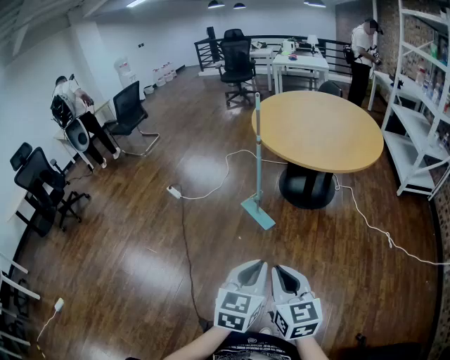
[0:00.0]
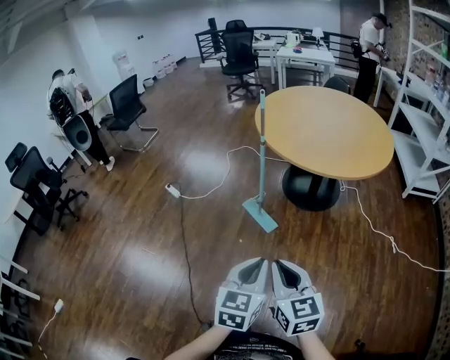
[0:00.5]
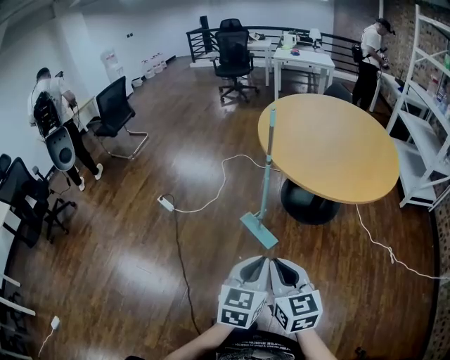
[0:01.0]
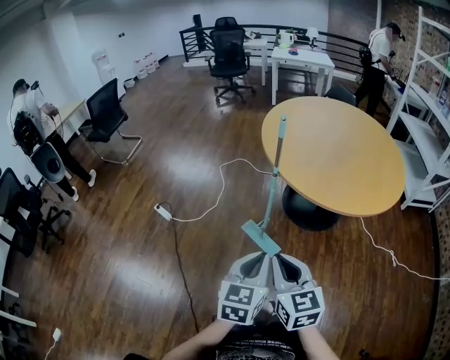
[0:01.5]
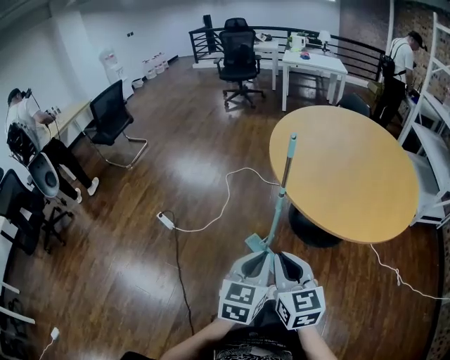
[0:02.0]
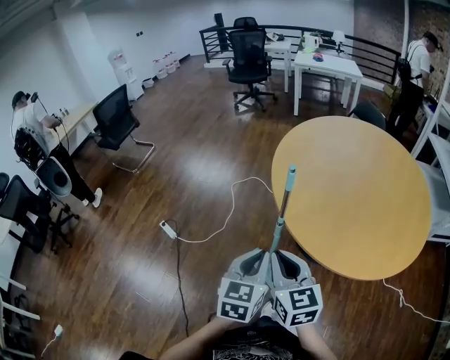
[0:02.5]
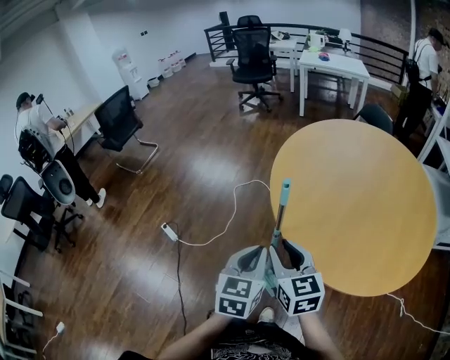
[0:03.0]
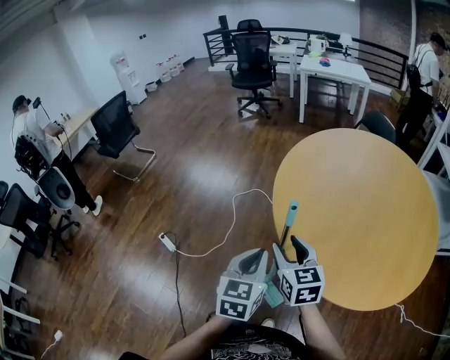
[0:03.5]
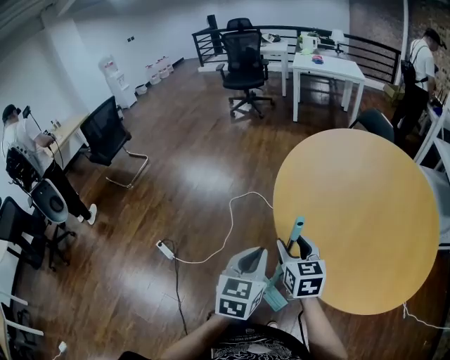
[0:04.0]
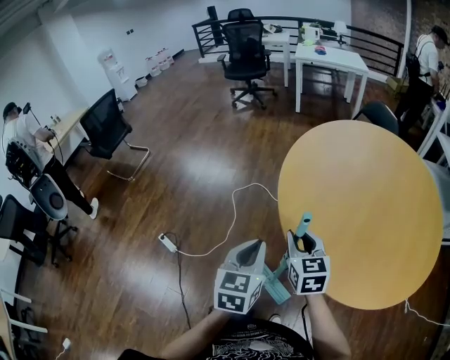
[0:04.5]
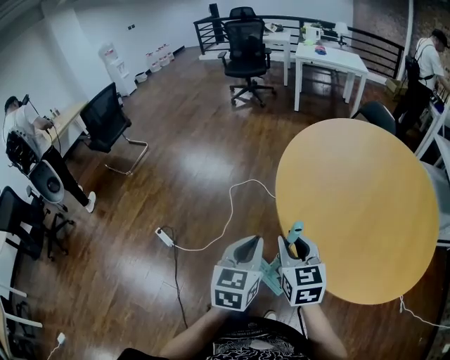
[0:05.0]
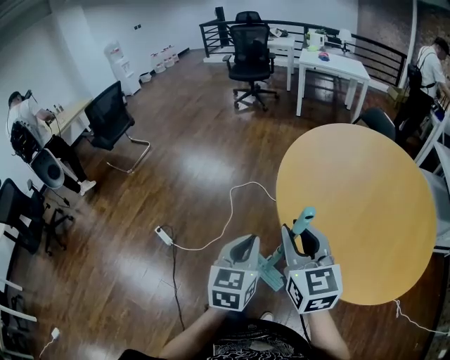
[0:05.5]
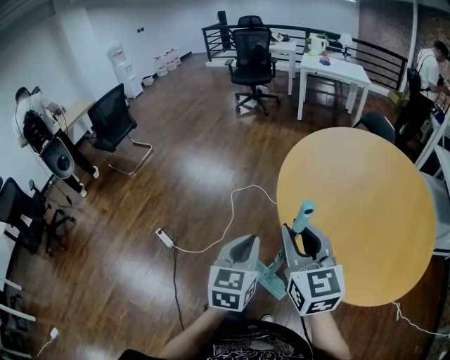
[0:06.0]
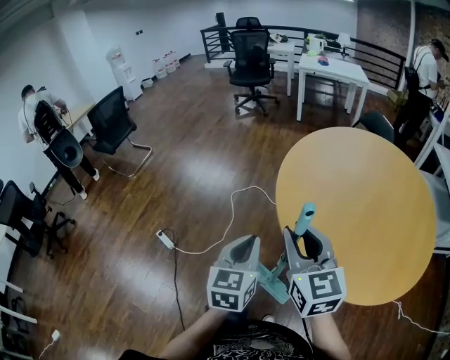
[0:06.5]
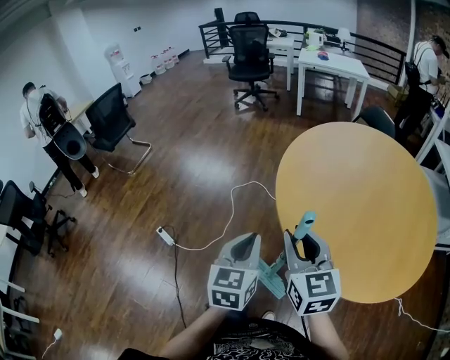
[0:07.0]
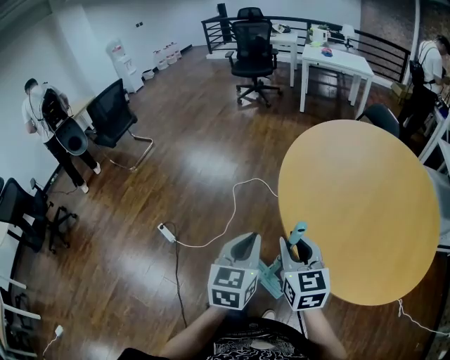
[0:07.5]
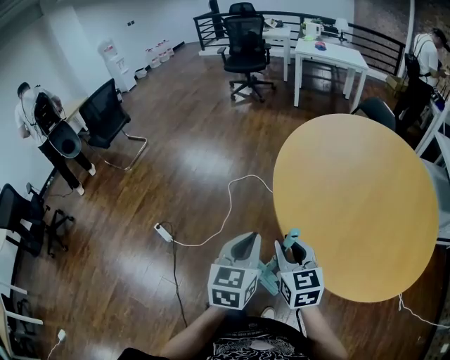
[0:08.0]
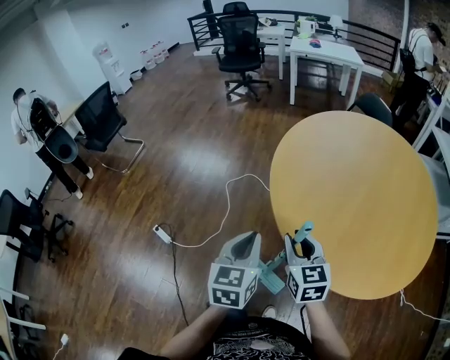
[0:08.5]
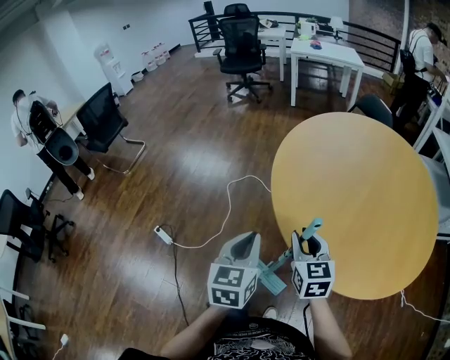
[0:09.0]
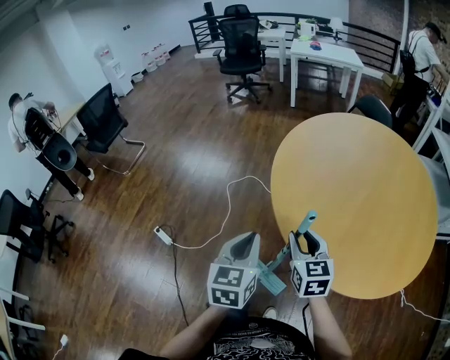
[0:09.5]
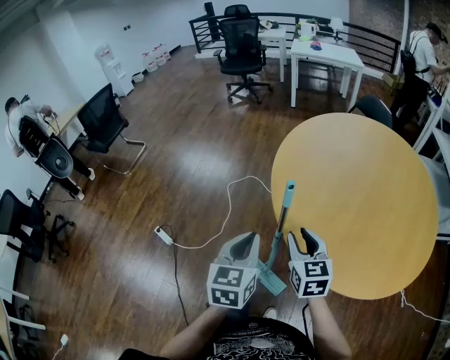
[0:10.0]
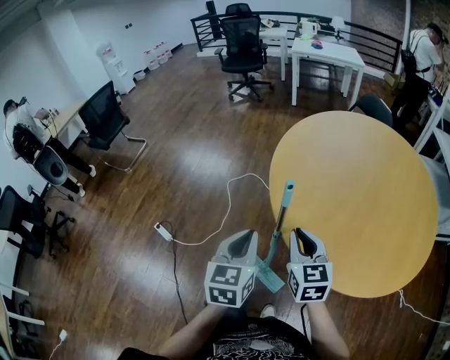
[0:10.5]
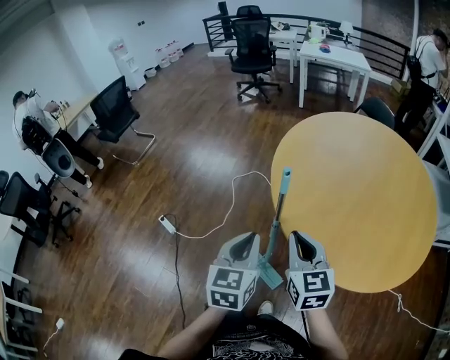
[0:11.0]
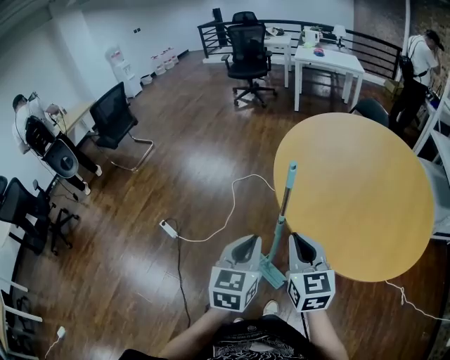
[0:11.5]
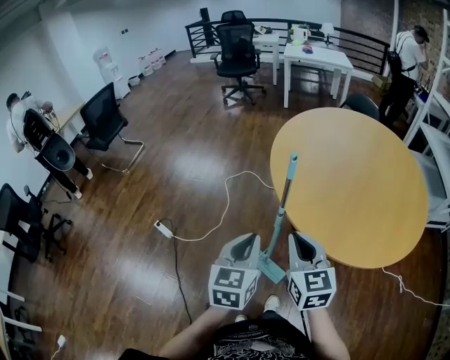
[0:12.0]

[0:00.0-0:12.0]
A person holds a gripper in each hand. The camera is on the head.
0:00.0 to 0:02.0: The pair of grippers is taken forward, some 40 cm.
0:02.0 to 0:04.0: The grippers both shift forward by about 30 cm. The right gripper opens its fingers.
0:04.0 to 0:06.0: The right gripper is displaced upward and backward by approximately 20 cm, and closes its fingers, while the left gripper ends up some 5 cm from where it was.
0:06.0 to 0:08.0: The right gripper shifts some 15 cm downward.
0:08.0 to 0:10.0: The right gripper ends up about 5 cm from where it was.
0:10.0 to 0:12.0: The right gripper shifts roughly 15 cm backward and upward, and closes its fingers; the left gripper shifts about 10 cm backward.

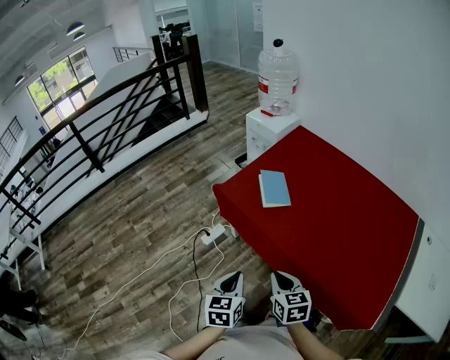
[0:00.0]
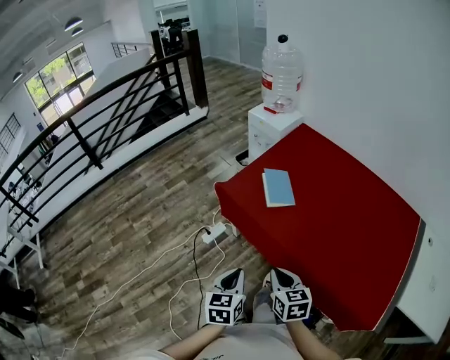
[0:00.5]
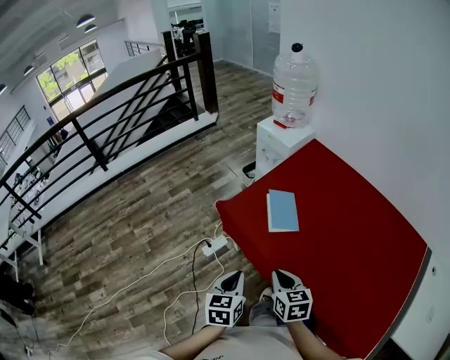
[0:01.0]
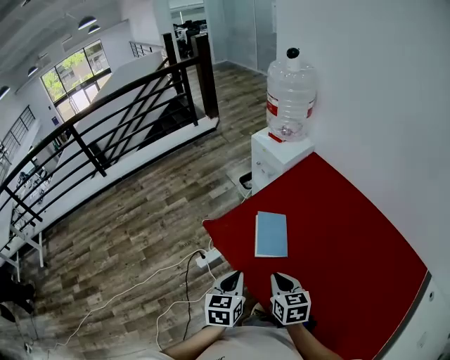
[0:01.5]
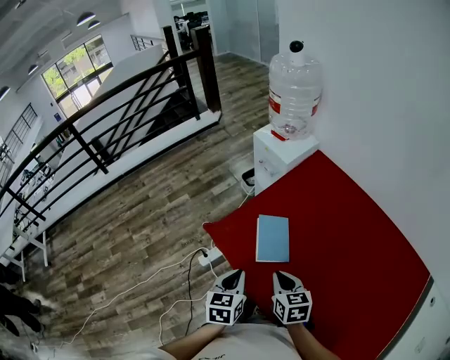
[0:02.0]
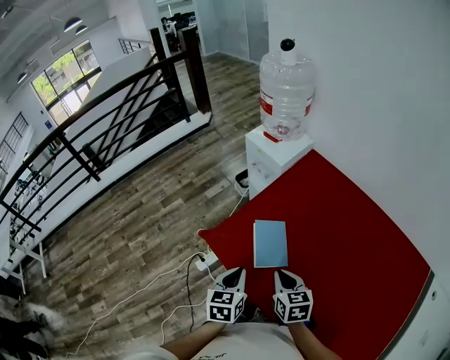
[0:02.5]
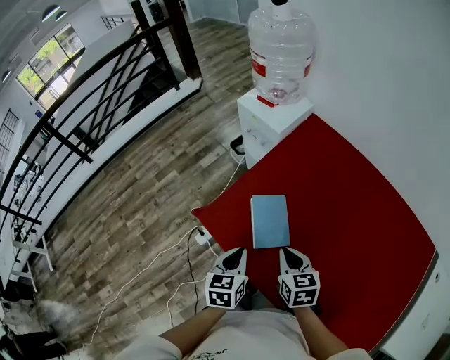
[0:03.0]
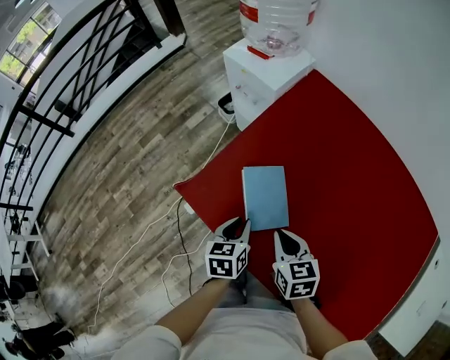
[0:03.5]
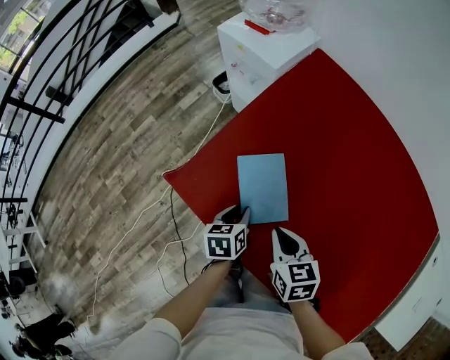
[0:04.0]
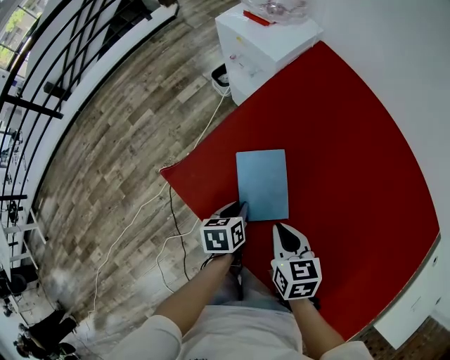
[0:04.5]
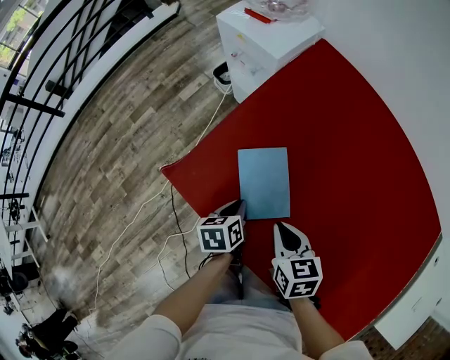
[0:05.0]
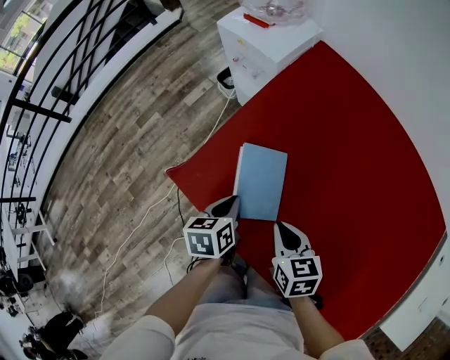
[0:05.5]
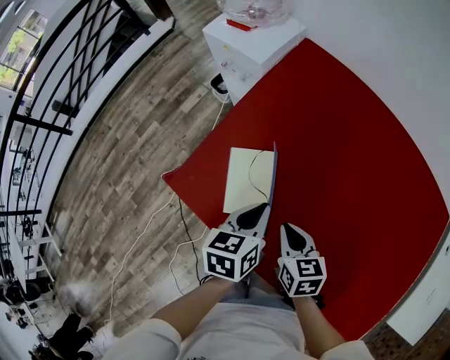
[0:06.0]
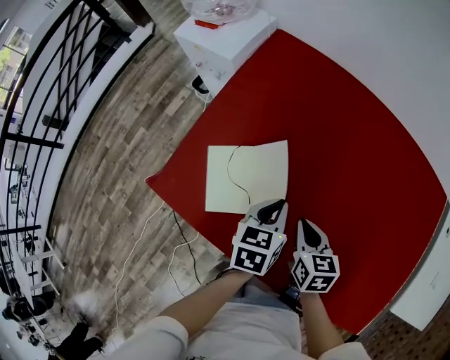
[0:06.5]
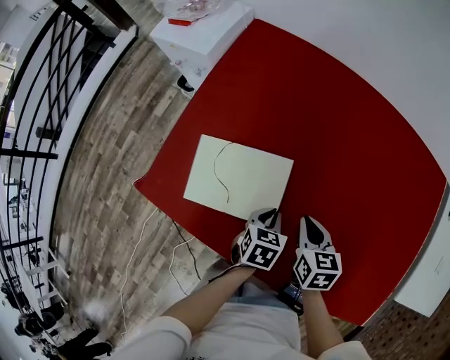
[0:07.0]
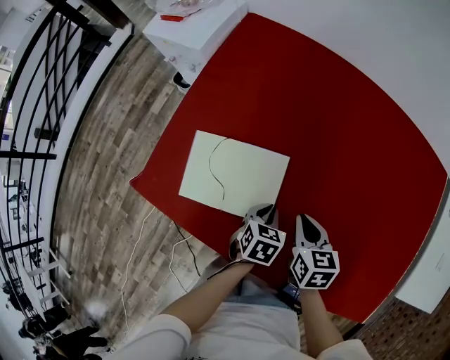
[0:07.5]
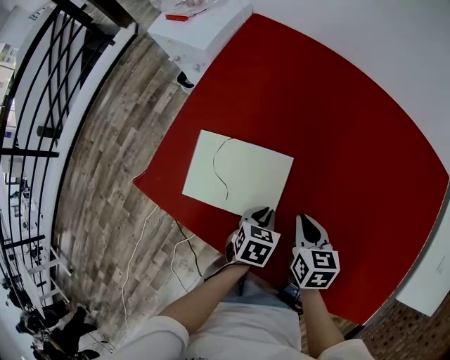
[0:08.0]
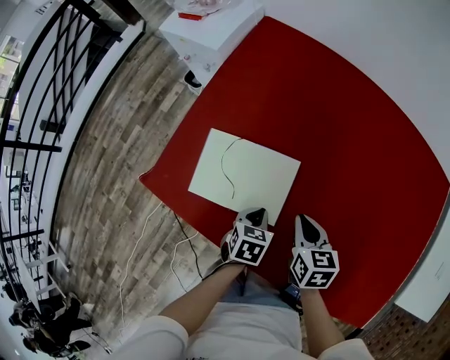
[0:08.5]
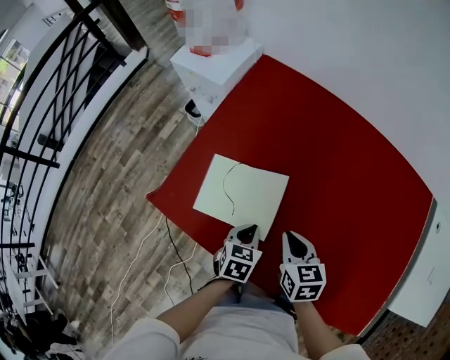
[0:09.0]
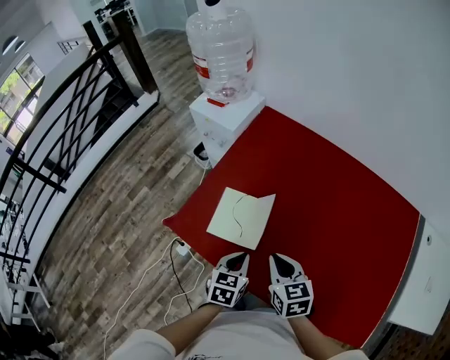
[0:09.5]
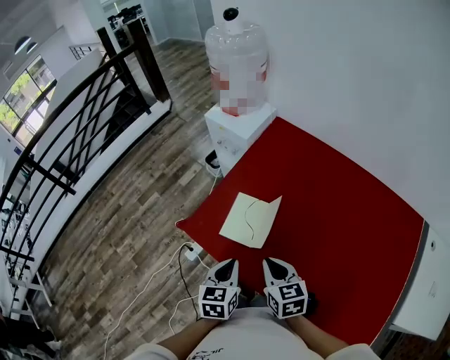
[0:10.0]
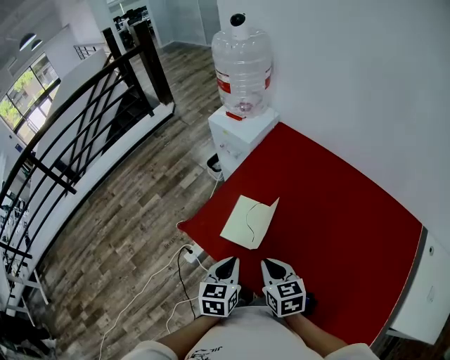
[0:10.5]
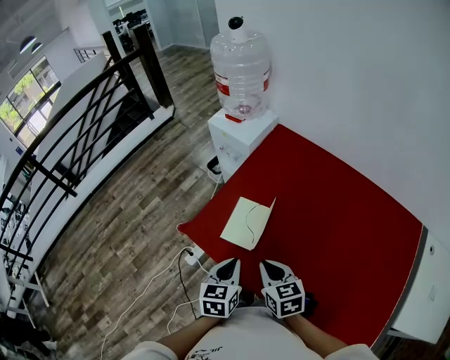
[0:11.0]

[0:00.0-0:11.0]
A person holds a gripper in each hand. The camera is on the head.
0:00.0 to 0:02.0: Both grippers move forward, about 30 cm.
0:02.0 to 0:03.5: The left gripper goes roughly 20 cm downward and forward. Meanwhile the right gripper travels downward and forward by roughly 10 cm.
0:03.5 to 0:05.5: The left gripper travels downward and back again, approximately 10 cm each way.
0:05.5 to 0:07.5: The right gripper changes place by about 20 cm, and swivels approximately 20 degrees; the left gripper ends up approximately 25 cm from where it was, and rotates approximately 40 degrees.
0:07.5 to 0:09.0: The left gripper goes about 10 cm to the left and upward. The right gripper heads upward and to the left, covering roughly 10 cm.
0:09.0 to 0:11.0: The left gripper is displaced upward and to the left by roughly 20 cm, and turns by some 30 degrees; the right gripper is displaced to the left, upward and backward by some 15 cm.

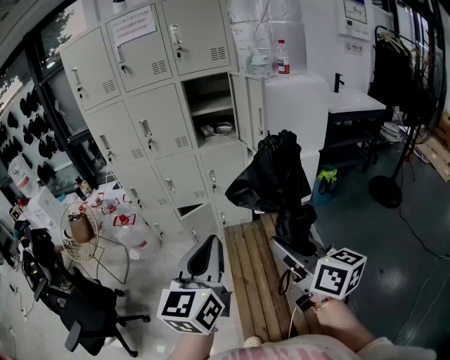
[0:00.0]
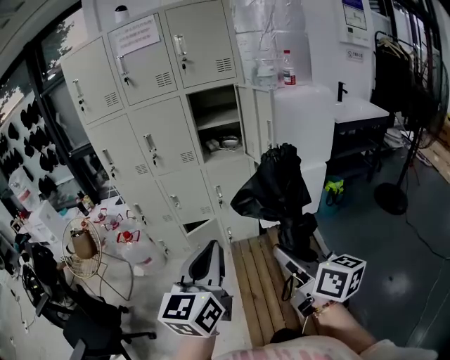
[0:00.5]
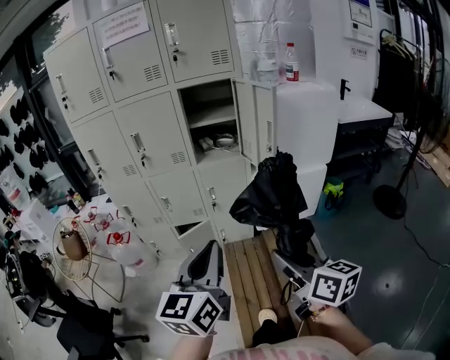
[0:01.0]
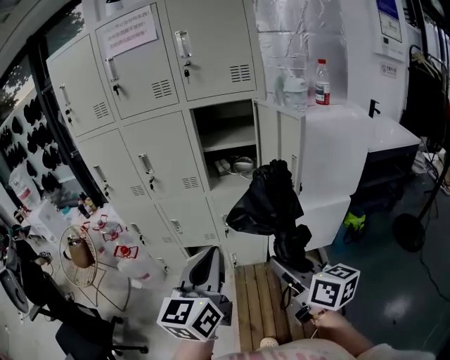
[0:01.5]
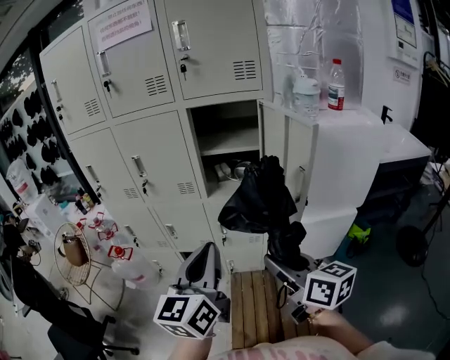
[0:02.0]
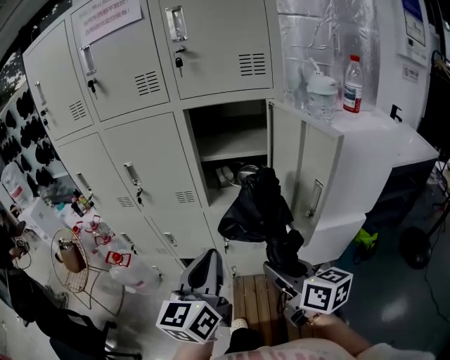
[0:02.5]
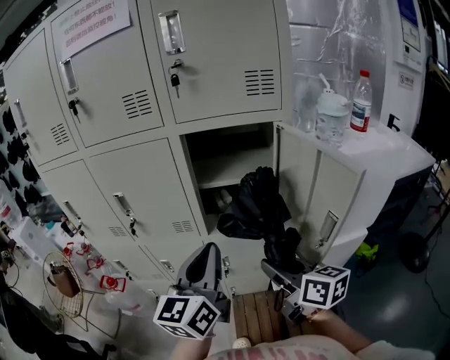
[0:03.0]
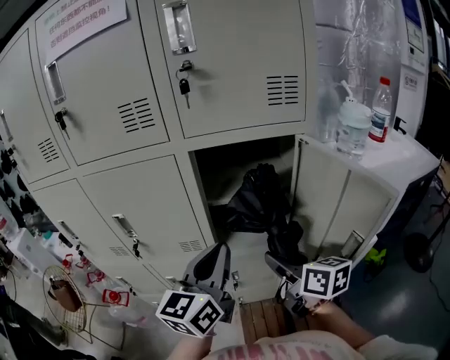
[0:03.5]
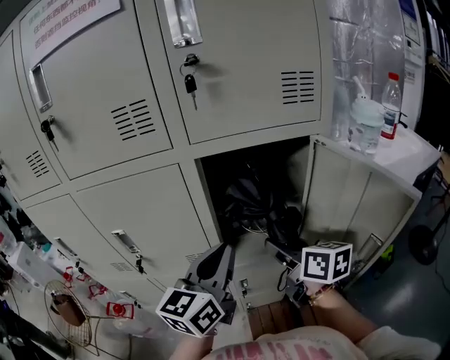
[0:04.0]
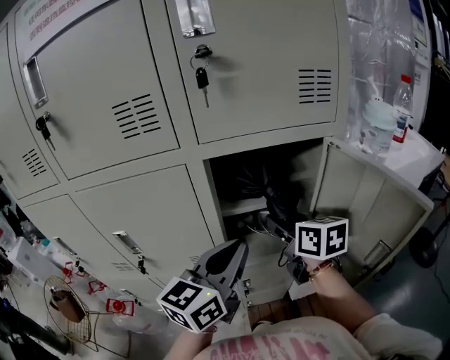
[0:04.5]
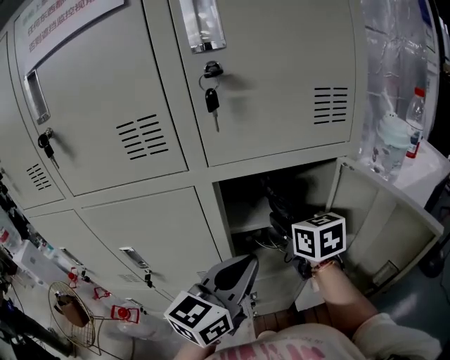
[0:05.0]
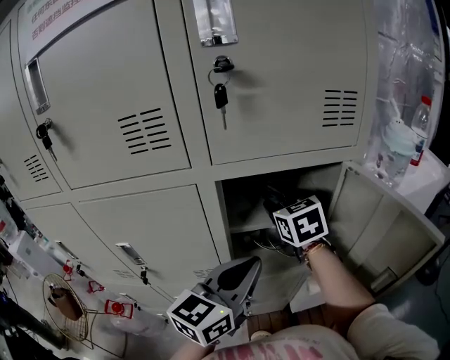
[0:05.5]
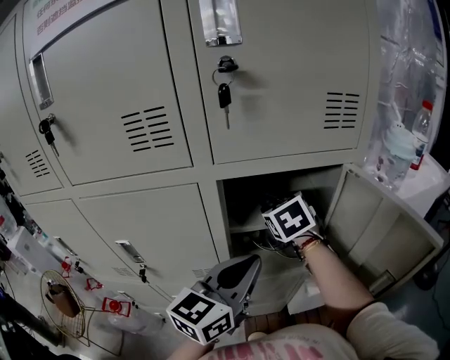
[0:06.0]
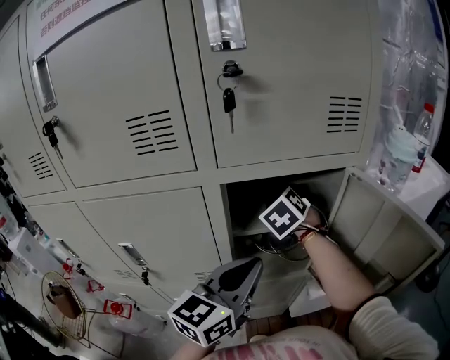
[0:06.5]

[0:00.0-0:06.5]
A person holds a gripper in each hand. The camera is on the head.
0:00.0 to 0:02.0: The two grippers go approximately 35 cm forward.
0:02.0 to 0:04.5: The grippers both shift forward by about 35 cm. The left gripper swivels some 30 degrees.
0:04.5 to 0:06.5: The right gripper goes roughly 15 cm forward, and rolls counterclockwise, seen from behind, by roughly 50 degrees.
